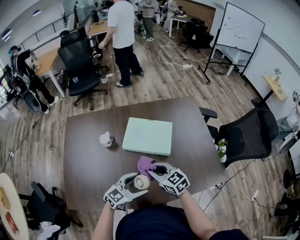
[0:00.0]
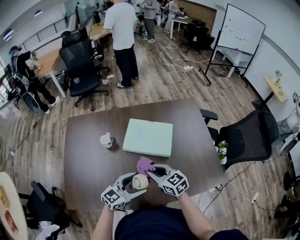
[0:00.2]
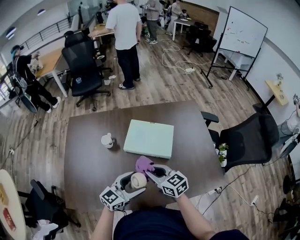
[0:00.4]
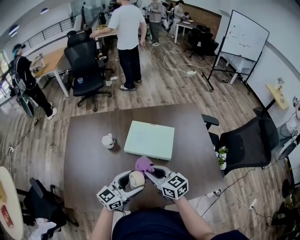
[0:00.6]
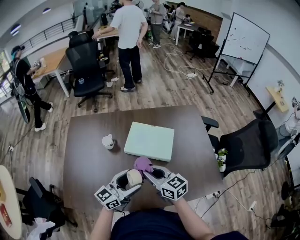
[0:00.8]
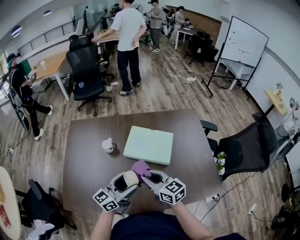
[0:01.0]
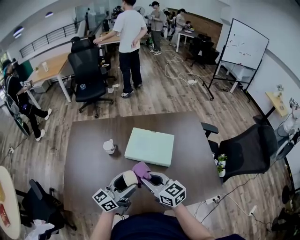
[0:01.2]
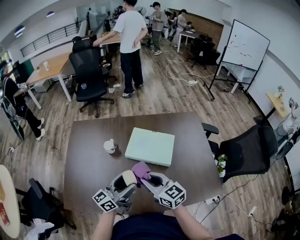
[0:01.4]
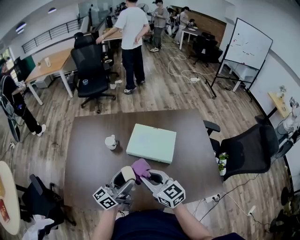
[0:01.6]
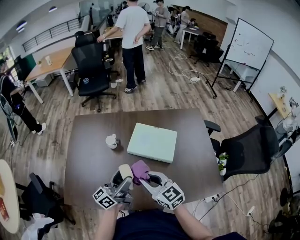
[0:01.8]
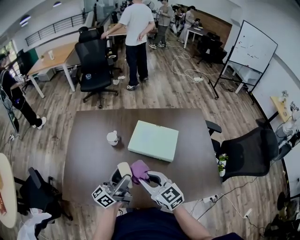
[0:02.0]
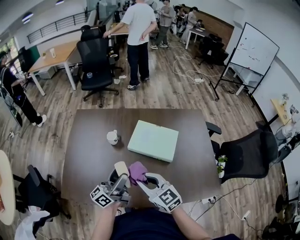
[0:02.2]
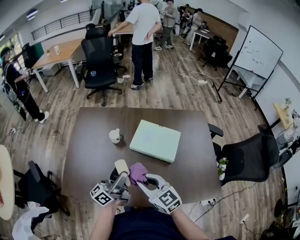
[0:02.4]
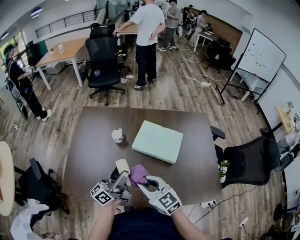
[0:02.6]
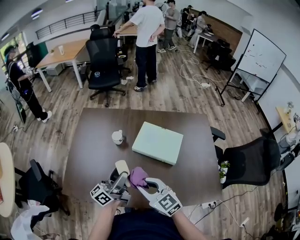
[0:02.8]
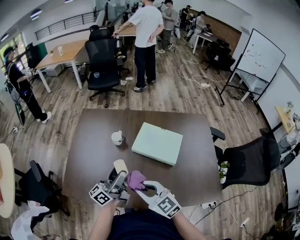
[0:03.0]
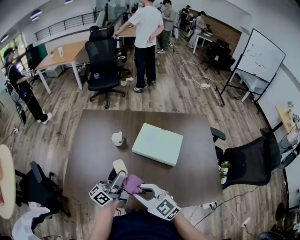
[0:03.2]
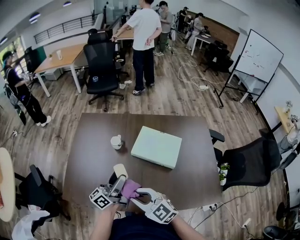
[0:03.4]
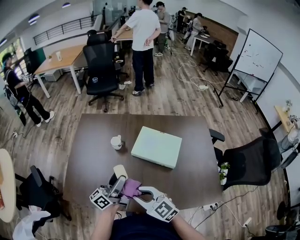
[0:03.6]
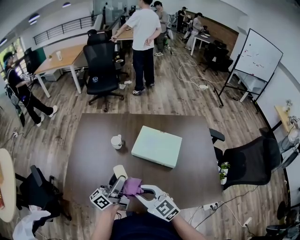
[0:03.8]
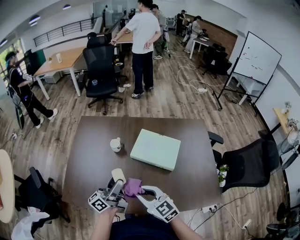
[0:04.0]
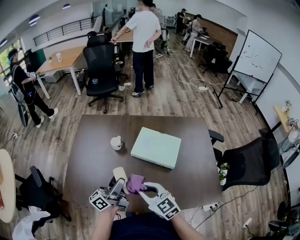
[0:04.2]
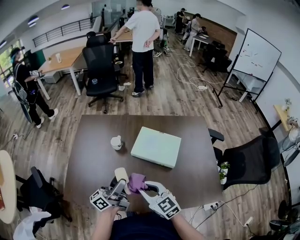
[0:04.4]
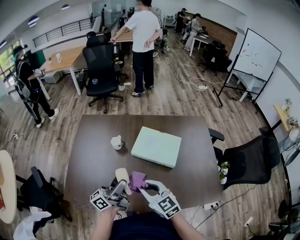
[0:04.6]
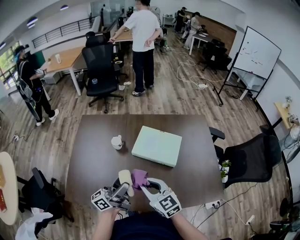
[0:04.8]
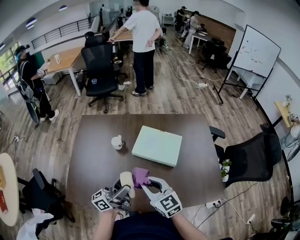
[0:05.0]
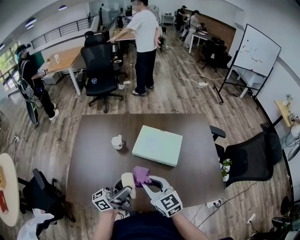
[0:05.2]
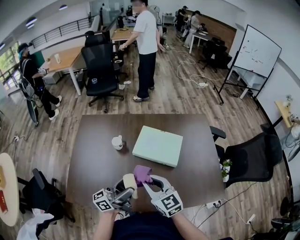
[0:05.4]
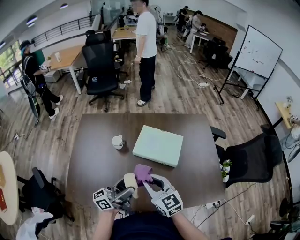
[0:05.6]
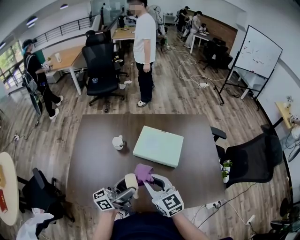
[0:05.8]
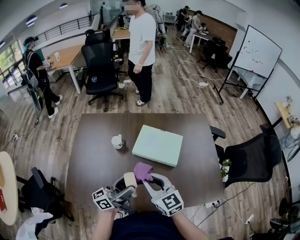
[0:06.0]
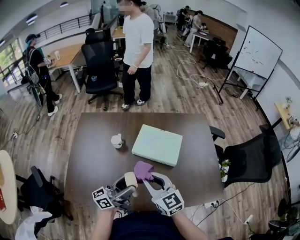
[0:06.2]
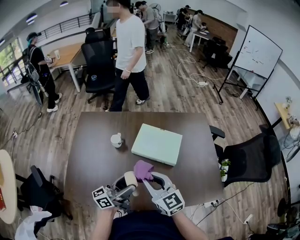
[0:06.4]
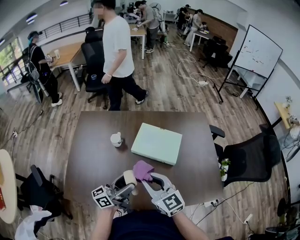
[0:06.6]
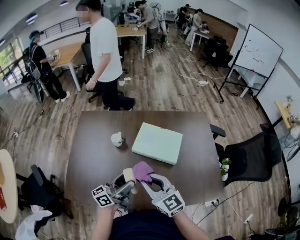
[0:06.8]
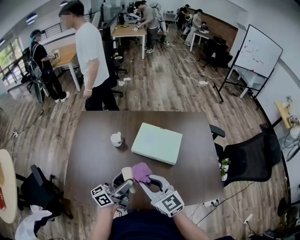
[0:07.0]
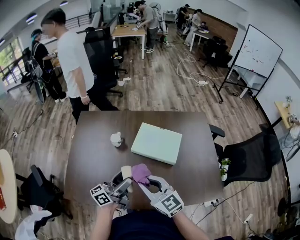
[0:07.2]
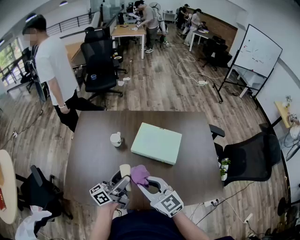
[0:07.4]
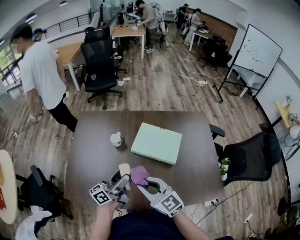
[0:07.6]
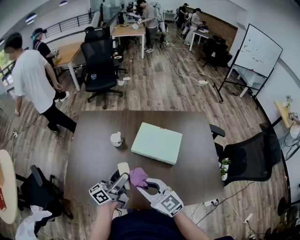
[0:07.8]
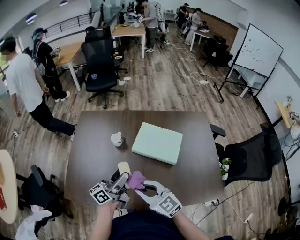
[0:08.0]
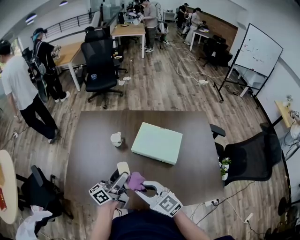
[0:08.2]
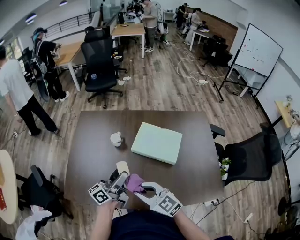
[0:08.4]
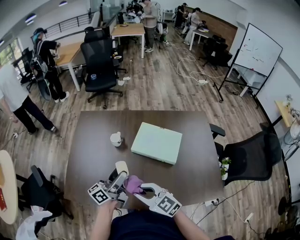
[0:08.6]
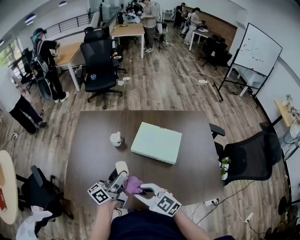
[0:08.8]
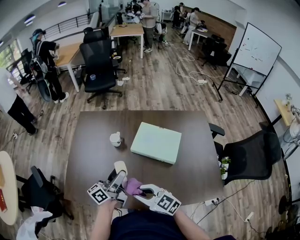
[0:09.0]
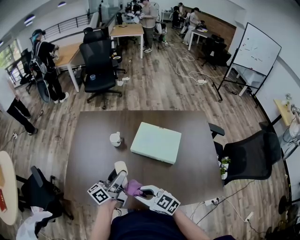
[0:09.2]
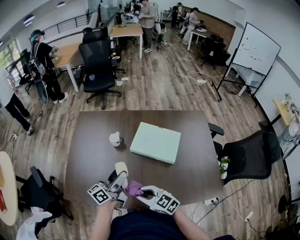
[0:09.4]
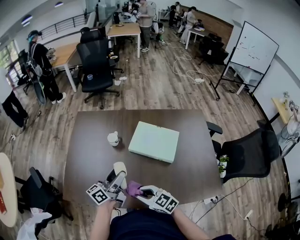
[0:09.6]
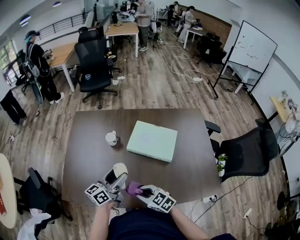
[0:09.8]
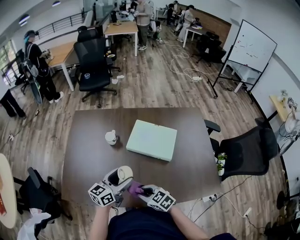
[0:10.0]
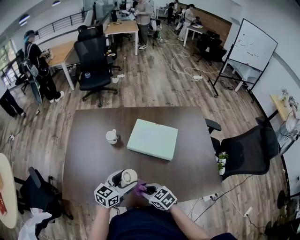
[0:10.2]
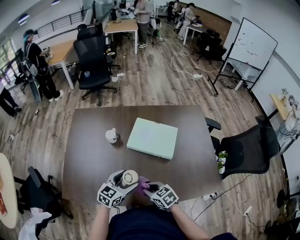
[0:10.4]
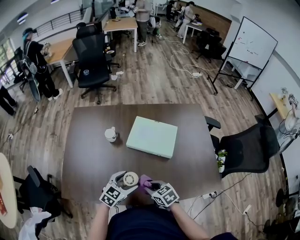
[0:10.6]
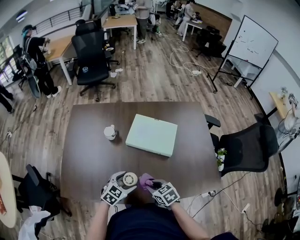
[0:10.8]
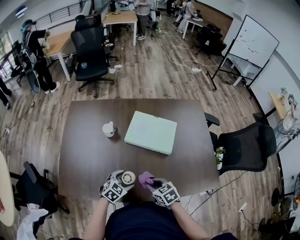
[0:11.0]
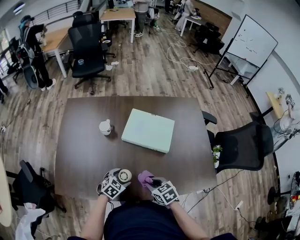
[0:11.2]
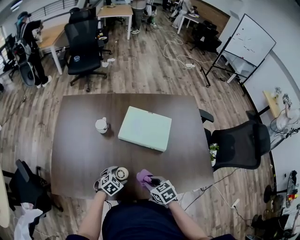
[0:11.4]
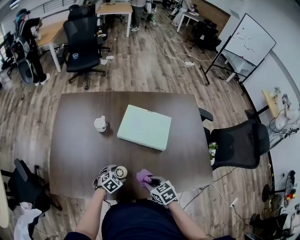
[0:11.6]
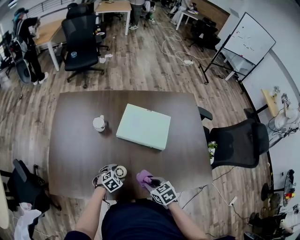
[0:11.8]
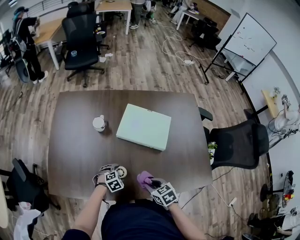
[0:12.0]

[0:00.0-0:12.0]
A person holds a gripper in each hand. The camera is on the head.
0:00.0 to 0:01.6: The right gripper heads upward, covering approximately 10 cm. Meanwhile the left gripper travels upward and to the left by some 15 cm, and angles its fingers upward, by approximately 40 degrees.
0:01.6 to 0:03.0: The left gripper shifts roughly 5 cm to the left, while the right gripper heads to the left and backward, covering approximately 10 cm.
0:03.0 to 0:04.4: There are only small adjustments of the grippers.
0:04.4 to 0:06.0: The right gripper changes place by about 5 cm.
0:06.0 to 0:07.6: The grippers move only a little.
0:07.6 to 0:09.0: The right gripper heads downward, covering roughly 5 cm.
0:09.0 to 0:10.4: The left gripper goes some 10 cm downward and backward, and points its fingers approximately 40 degrees further downward. Meanwhile the right gripper goes roughly 15 cm downward and to the right, and turns by approximately 30 degrees.
0:10.4 to 0:12.0: The left gripper shifts some 25 cm downward, and angles its fingers downward, by some 40 degrees, while the right gripper changes place by some 5 cm.

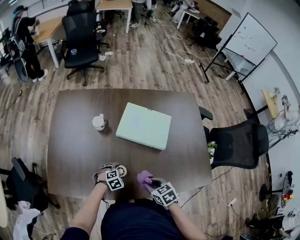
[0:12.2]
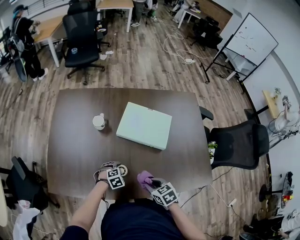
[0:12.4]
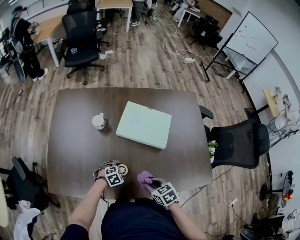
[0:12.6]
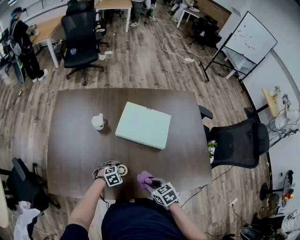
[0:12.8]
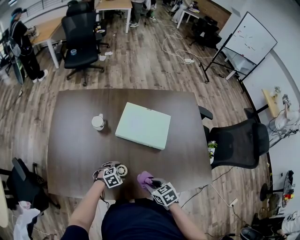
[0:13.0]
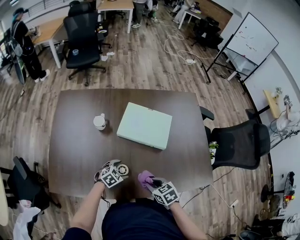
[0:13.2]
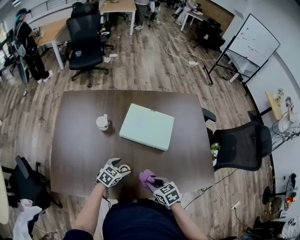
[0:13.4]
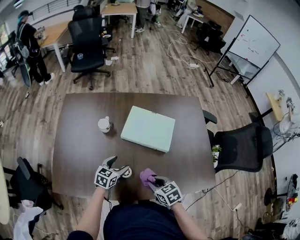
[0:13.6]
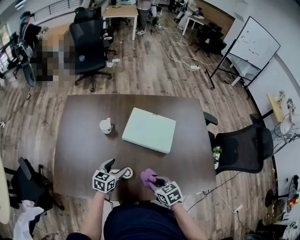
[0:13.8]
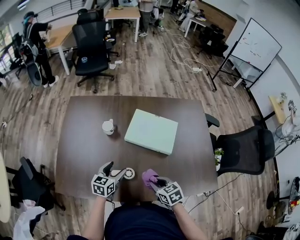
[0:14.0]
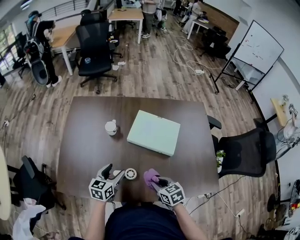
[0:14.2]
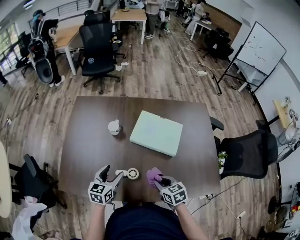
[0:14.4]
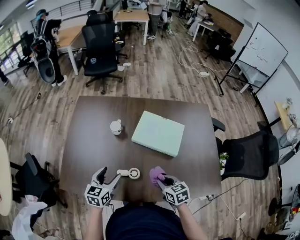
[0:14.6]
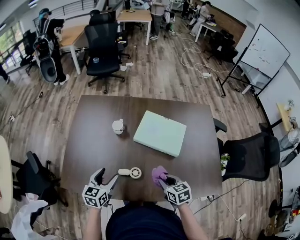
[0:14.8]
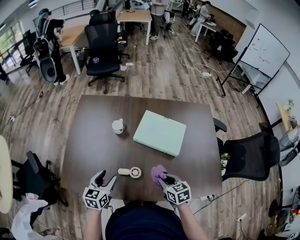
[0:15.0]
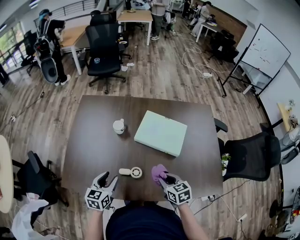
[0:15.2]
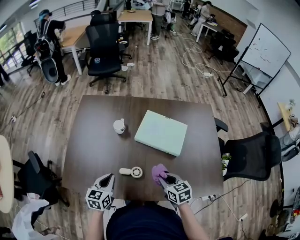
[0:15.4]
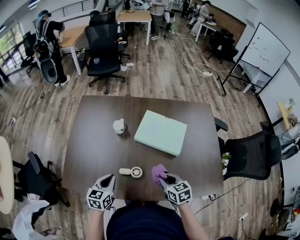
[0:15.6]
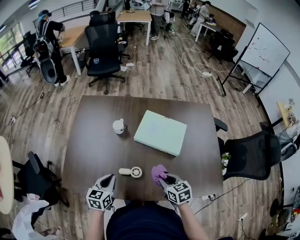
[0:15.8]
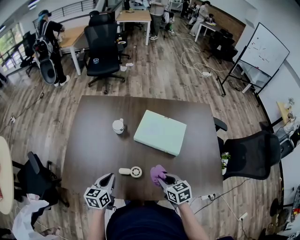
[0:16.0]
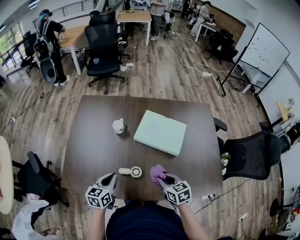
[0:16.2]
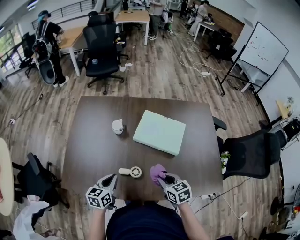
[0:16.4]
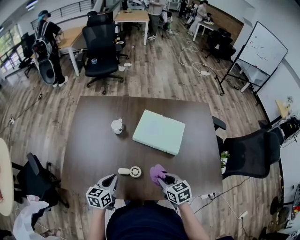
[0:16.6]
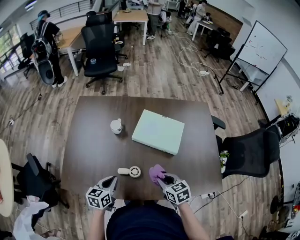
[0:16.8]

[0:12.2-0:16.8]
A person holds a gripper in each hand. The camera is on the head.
0:12.2 to 0:13.8: The left gripper goes roughly 15 cm upward, and points its fingers approximately 40 degrees further upward.
0:13.8 to 0:15.2: The left gripper heads to the left, backward and upward, covering about 15 cm.
0:15.2 to 0:16.8: The left gripper closes up.

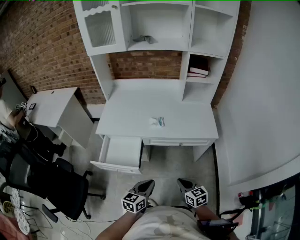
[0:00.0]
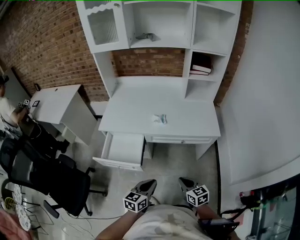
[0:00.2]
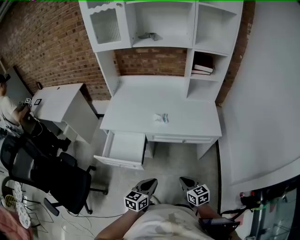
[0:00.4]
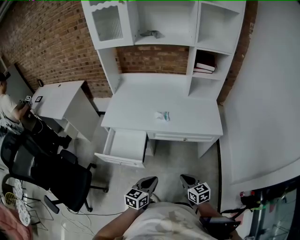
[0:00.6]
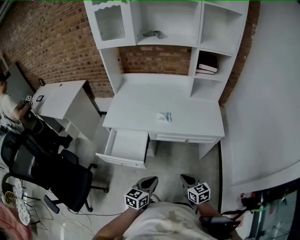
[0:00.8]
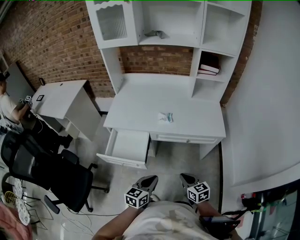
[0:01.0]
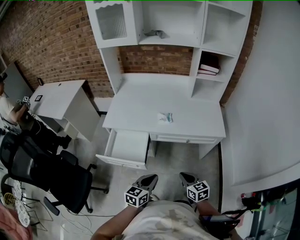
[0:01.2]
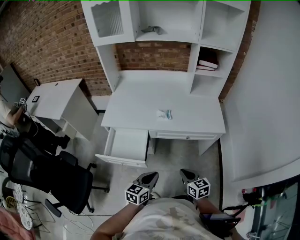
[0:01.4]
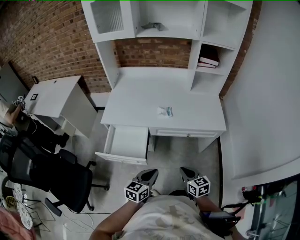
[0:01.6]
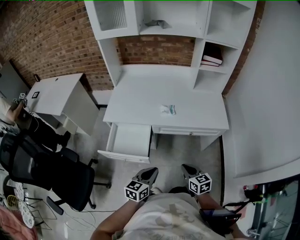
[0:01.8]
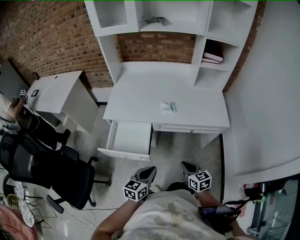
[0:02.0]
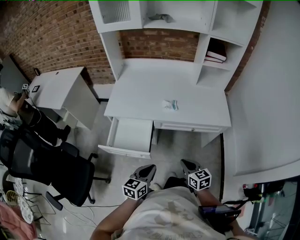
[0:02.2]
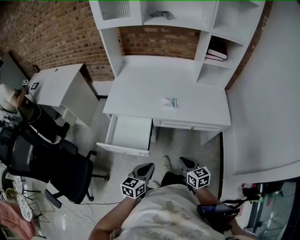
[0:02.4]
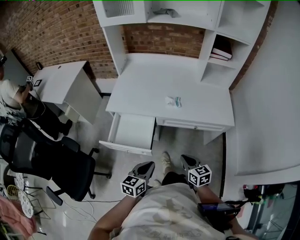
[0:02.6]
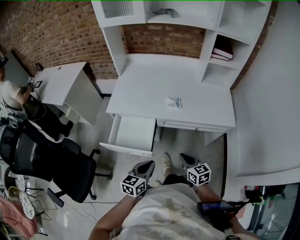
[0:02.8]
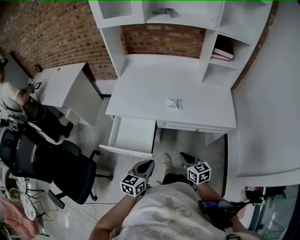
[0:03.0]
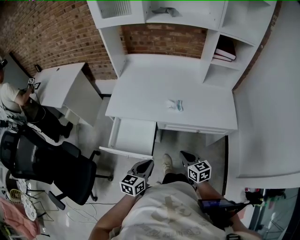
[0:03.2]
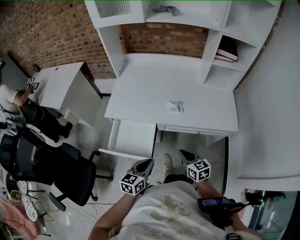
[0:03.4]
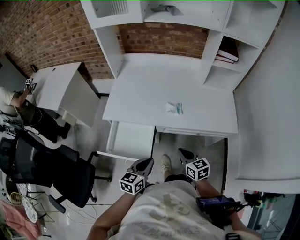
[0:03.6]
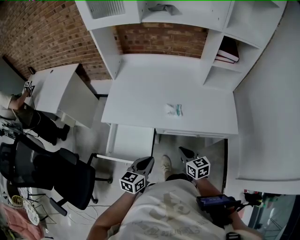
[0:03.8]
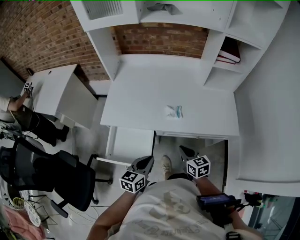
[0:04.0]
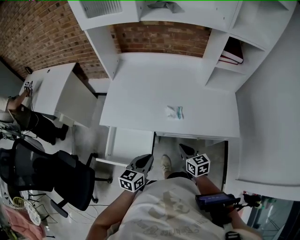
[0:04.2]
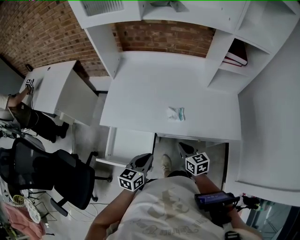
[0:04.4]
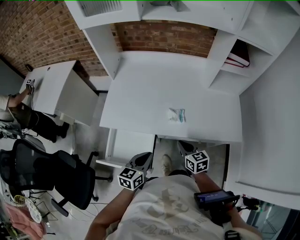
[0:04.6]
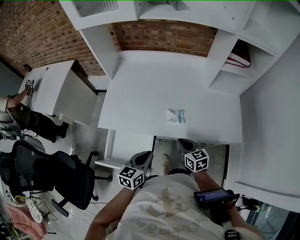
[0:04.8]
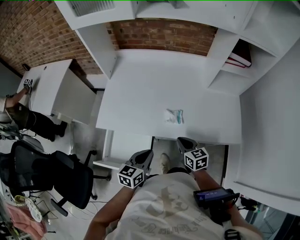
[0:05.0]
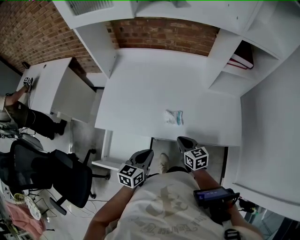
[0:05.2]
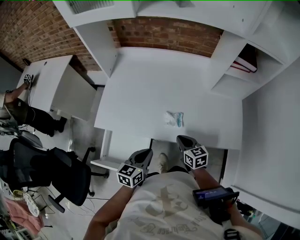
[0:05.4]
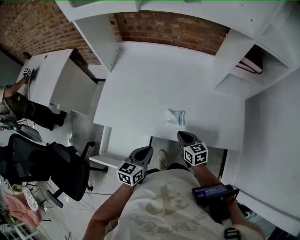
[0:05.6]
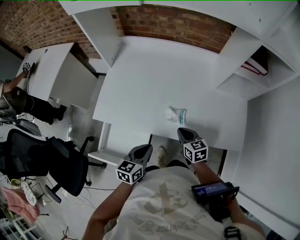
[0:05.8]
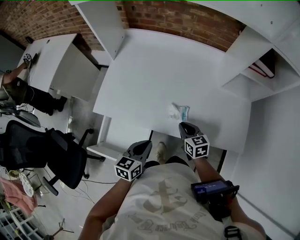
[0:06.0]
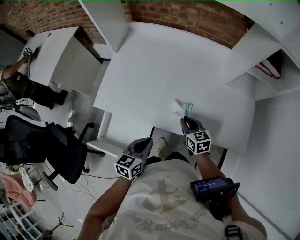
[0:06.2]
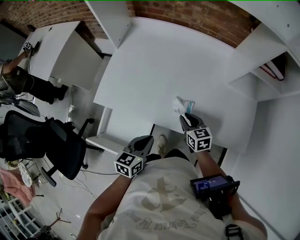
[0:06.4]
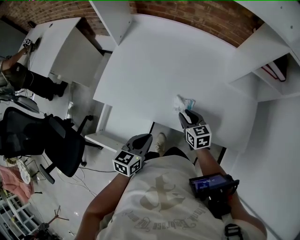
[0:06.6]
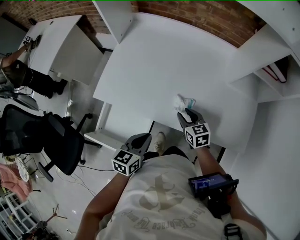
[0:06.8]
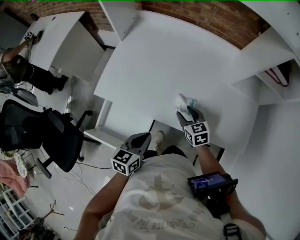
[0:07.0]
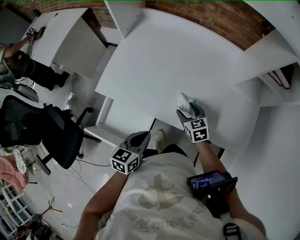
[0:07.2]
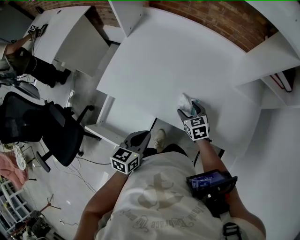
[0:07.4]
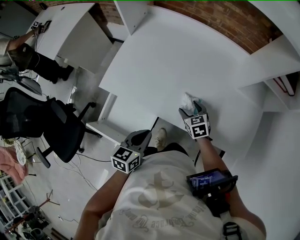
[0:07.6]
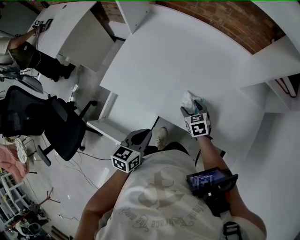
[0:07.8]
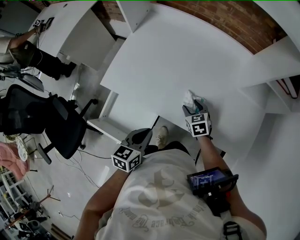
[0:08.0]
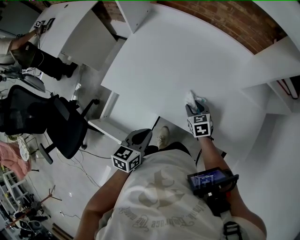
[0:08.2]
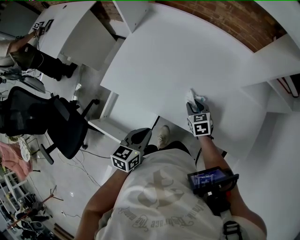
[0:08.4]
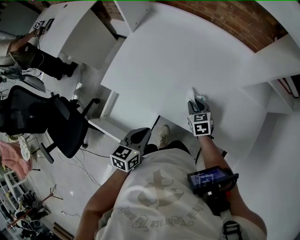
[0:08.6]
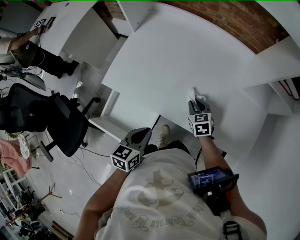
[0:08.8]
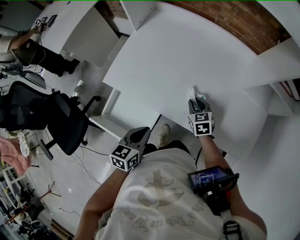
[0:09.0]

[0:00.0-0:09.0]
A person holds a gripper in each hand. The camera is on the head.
0:00.0 to 0:01.6: The grippers move only a little.
0:01.6 to 0:03.0: The left gripper heads to the left, covering roughly 5 cm. Meanwhile the right gripper moves forward, some 5 cm.
0:03.0 to 0:04.4: The grippers both shift forward by about 15 cm.
0:04.4 to 0:06.0: The left gripper shifts about 10 cm forward; the right gripper travels forward by some 15 cm.
0:06.0 to 0:07.6: The right gripper is displaced downward and forward by roughly 10 cm, rotates roughly 20 degrees, and opens up.
0:07.6 to 0:09.0: The right gripper closes.
